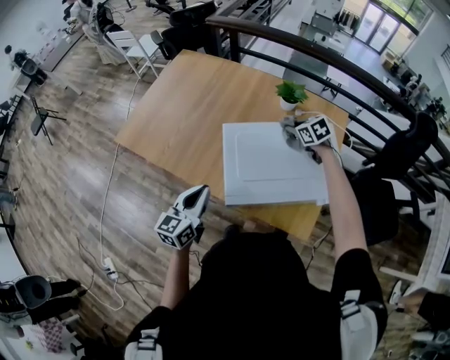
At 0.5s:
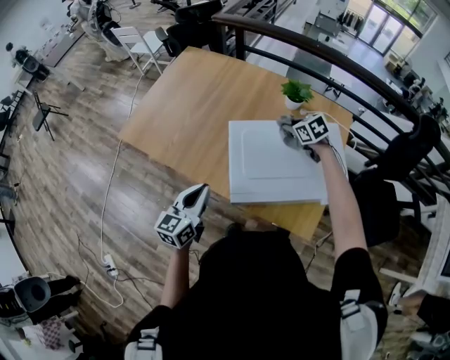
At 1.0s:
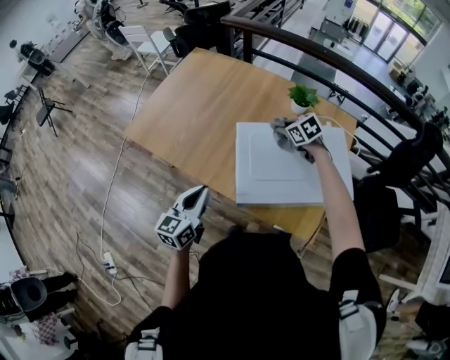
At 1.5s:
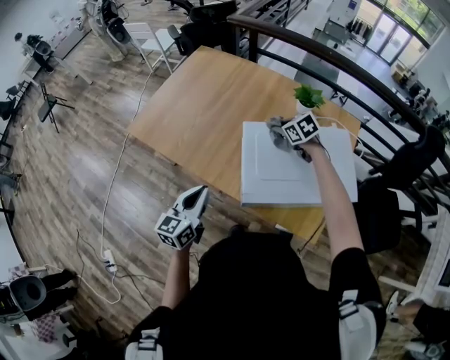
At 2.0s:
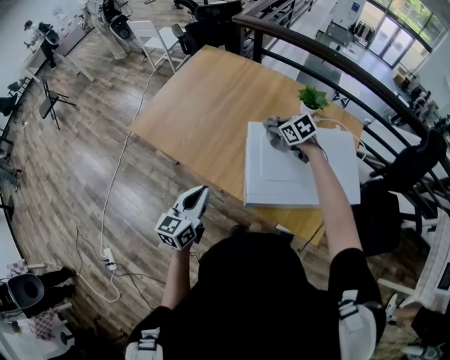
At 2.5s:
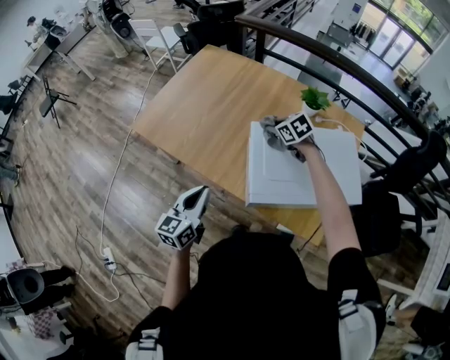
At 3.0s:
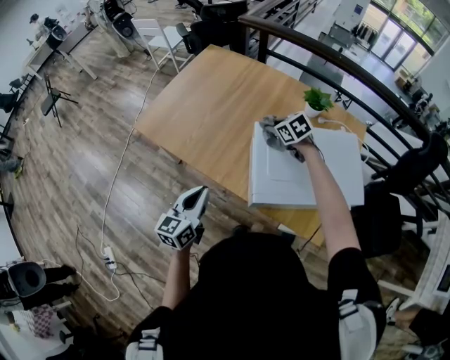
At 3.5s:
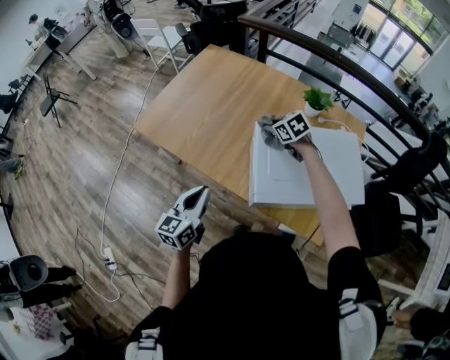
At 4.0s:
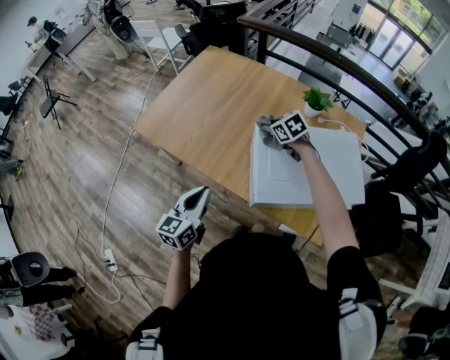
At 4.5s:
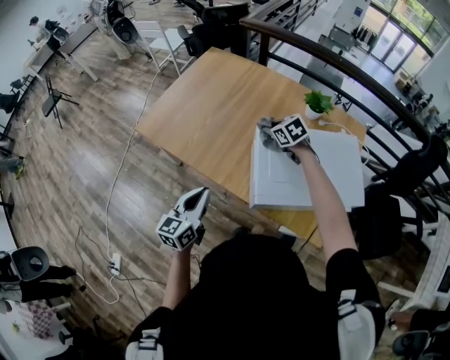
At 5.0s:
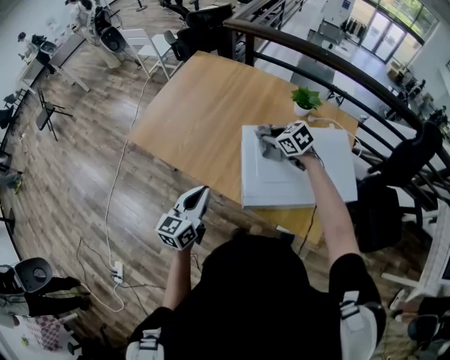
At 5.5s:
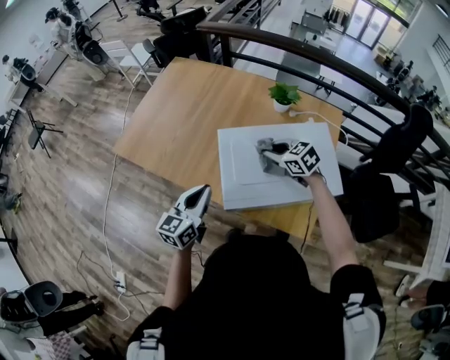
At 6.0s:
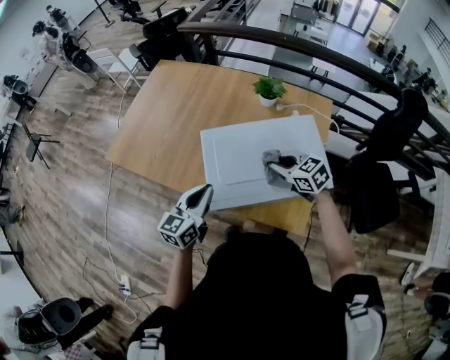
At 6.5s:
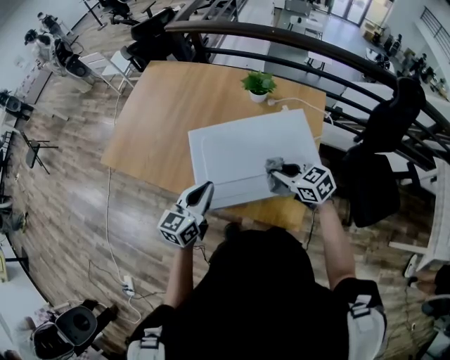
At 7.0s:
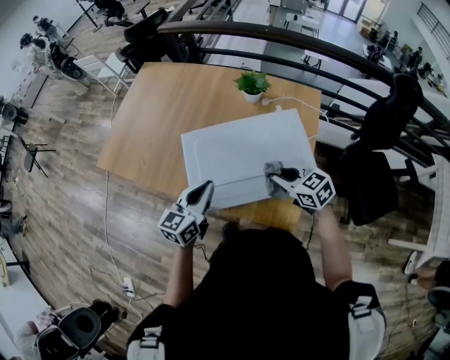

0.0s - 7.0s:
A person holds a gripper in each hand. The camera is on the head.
0.0s - 2.0s: The right gripper travels to the left by roughly 15 cm. The left gripper heads to the left, covering roughly 10 cm.
2.0s - 3.5s: The grippers make only small movements.
3.5s - 5.0s: The right gripper ends up about 5 cm from where it was.
5.0s - 7.0s: The right gripper travels to the right and backward by about 30 cm. The left gripper travels to the right by approximately 20 cm.

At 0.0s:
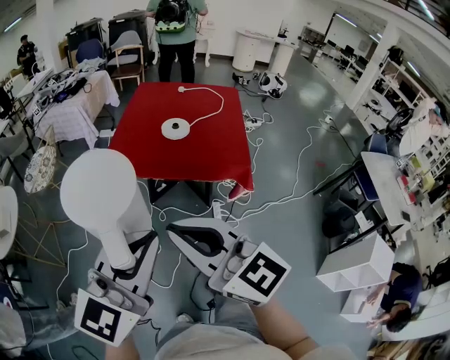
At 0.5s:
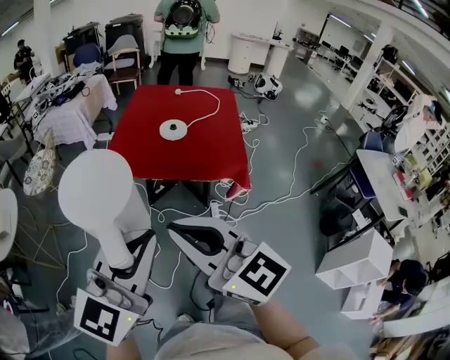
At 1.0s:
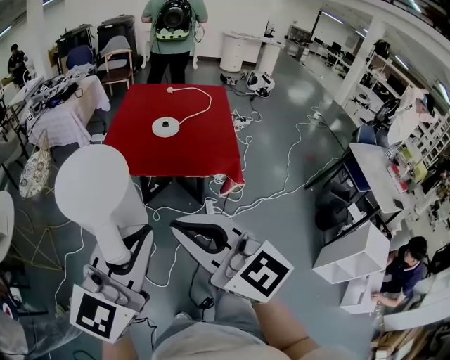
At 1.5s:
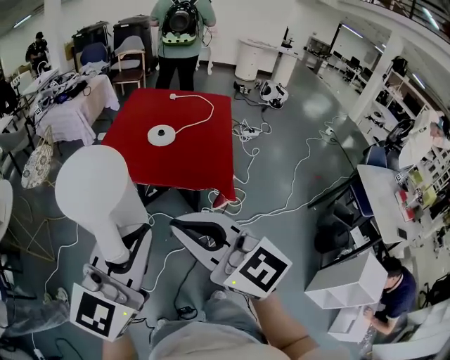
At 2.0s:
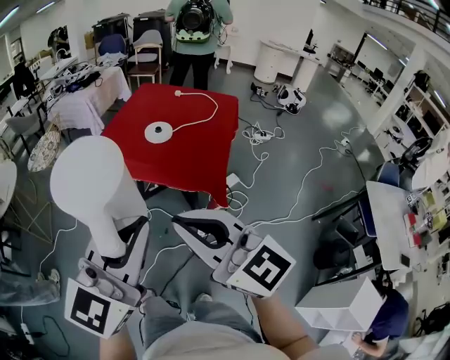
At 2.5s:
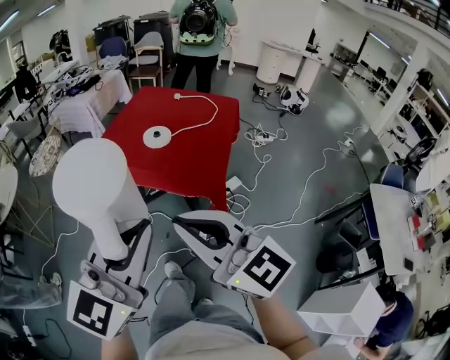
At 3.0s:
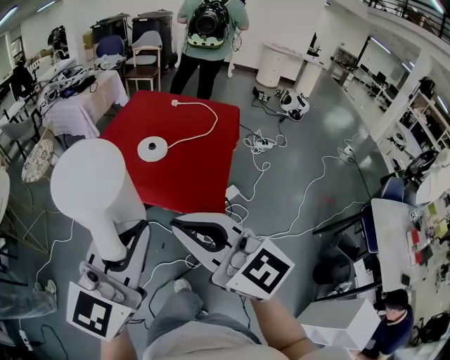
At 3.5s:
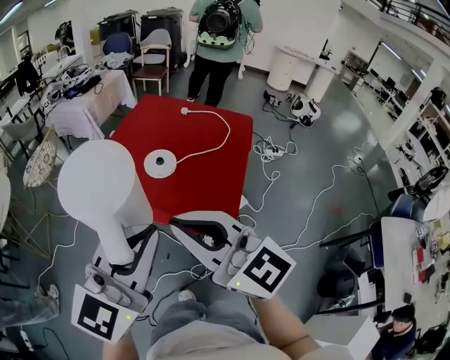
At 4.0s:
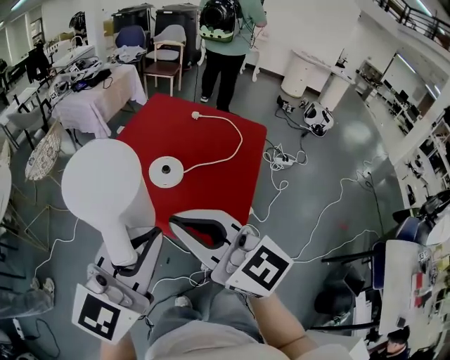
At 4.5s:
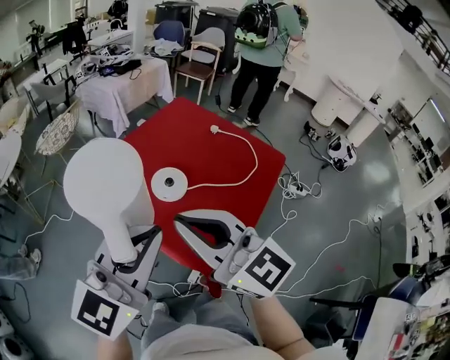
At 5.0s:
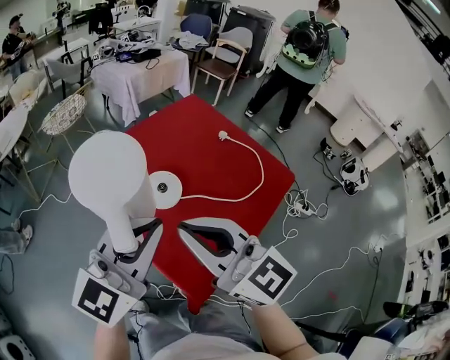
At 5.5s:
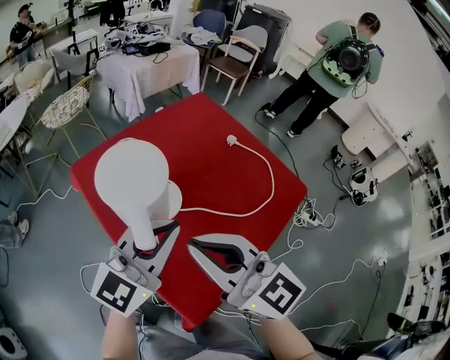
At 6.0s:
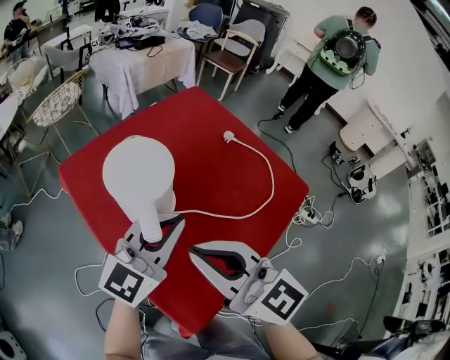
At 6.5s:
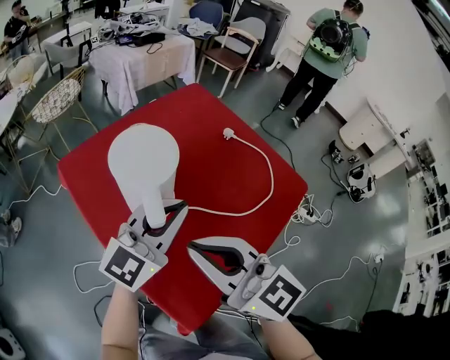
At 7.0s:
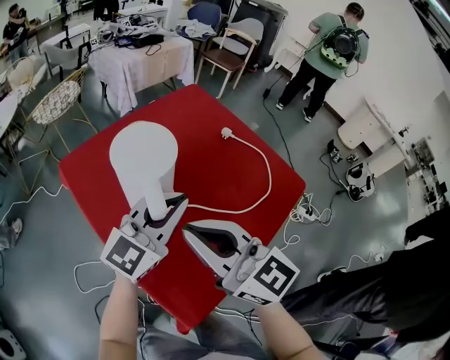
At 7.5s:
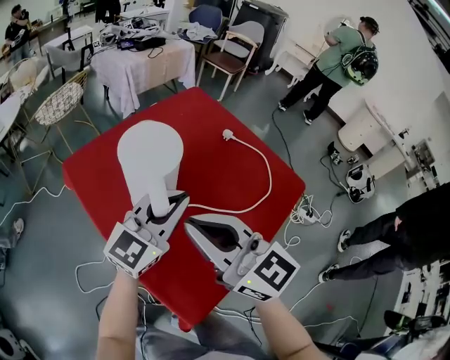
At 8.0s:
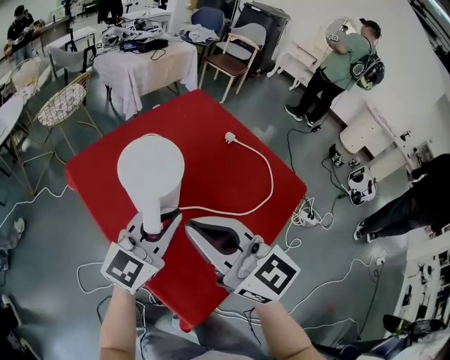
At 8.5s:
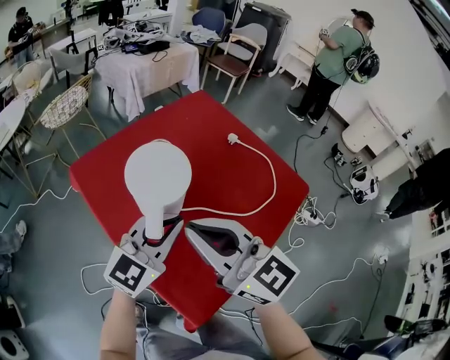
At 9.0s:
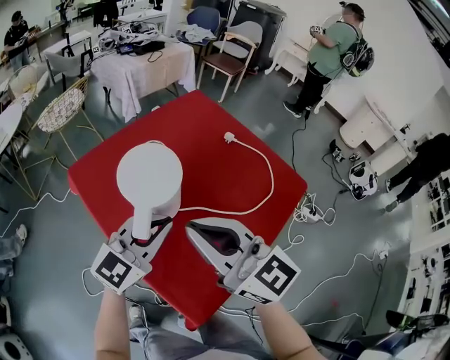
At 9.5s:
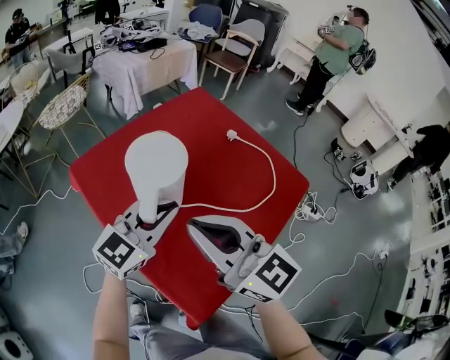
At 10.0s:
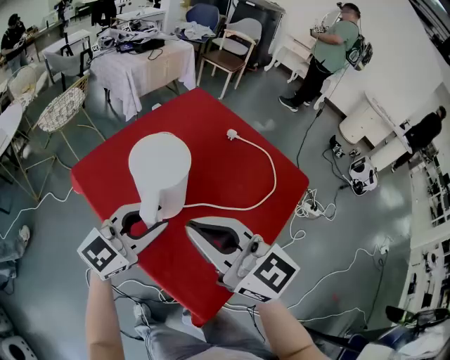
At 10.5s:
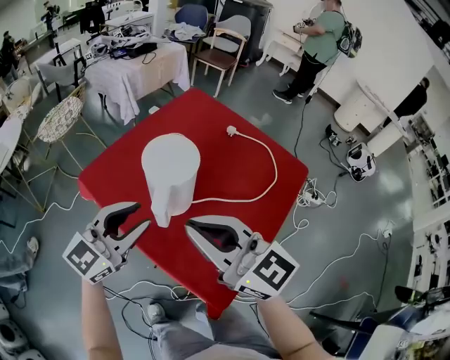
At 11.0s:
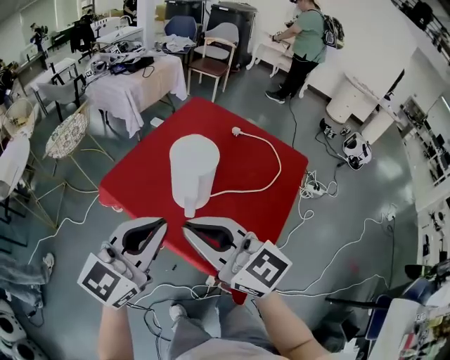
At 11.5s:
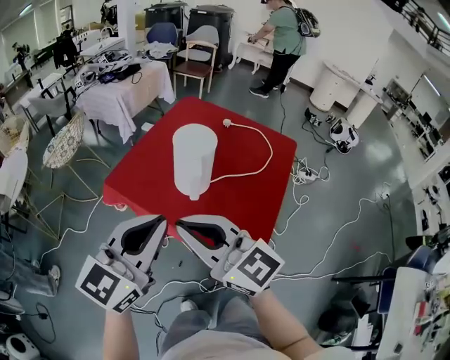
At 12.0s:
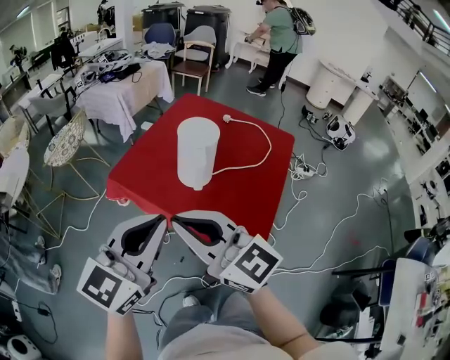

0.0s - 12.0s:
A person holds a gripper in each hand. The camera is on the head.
0.0s - 2.0s: The grippers both shift to the right by approximately 20 cm.
2.0s - 4.0s: Both grippers move forward, some 25 cm.
4.0s - 6.0s: The left gripper heads forward, to the right and downward, covering approximately 35 cm. Meanwhile the right gripper is displaced to the right, forward and downward by approximately 25 cm, and rotates roughly 20 degrees.
6.0s - 8.0s: There are only small adjustments of the grippers.
8.0s - 10.0s: The left gripper opens.
10.0s - 12.0s: The right gripper shifts some 25 cm to the left and backward, while the left gripper shifts some 30 cm backward, to the left and upward, and closes up.

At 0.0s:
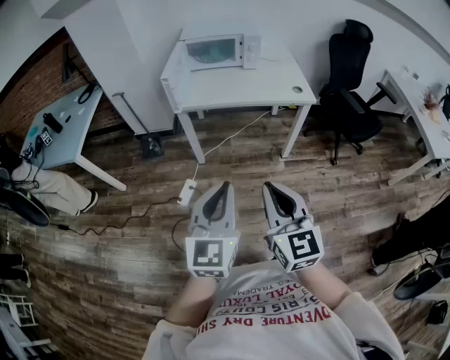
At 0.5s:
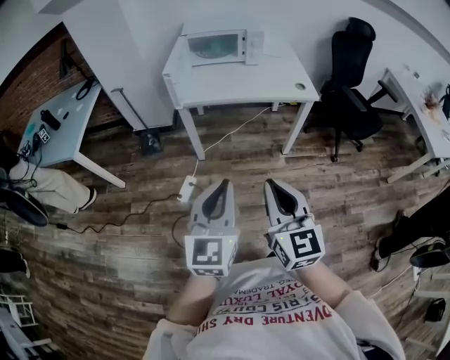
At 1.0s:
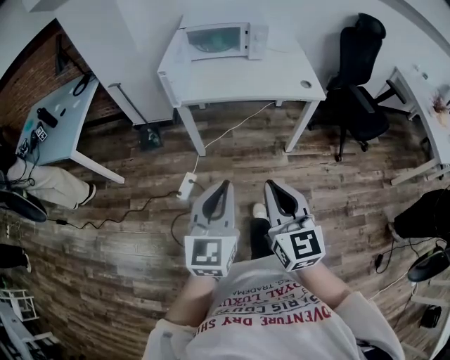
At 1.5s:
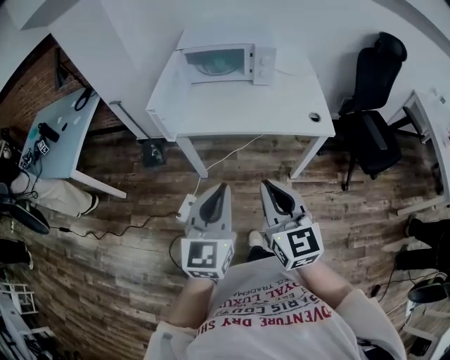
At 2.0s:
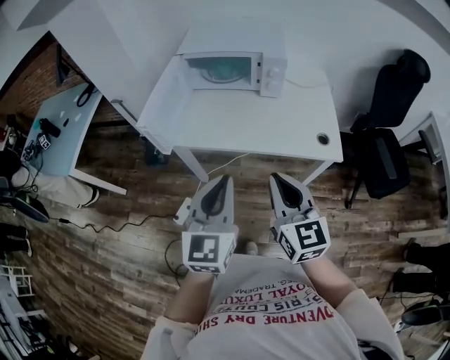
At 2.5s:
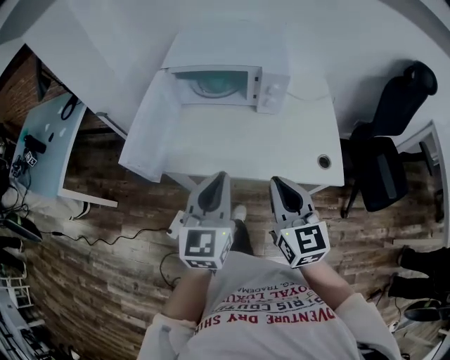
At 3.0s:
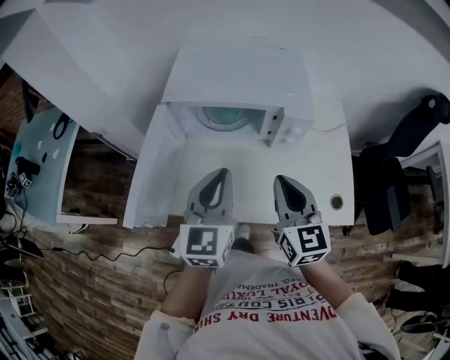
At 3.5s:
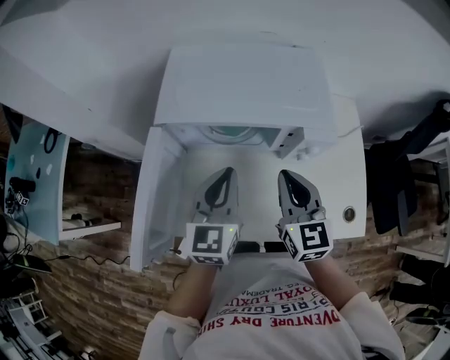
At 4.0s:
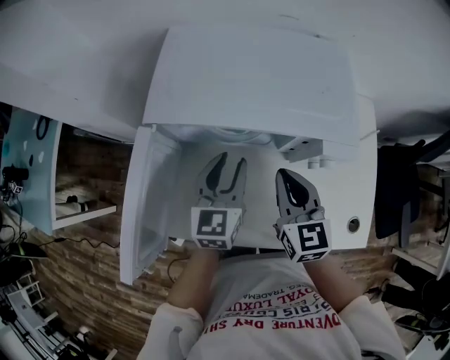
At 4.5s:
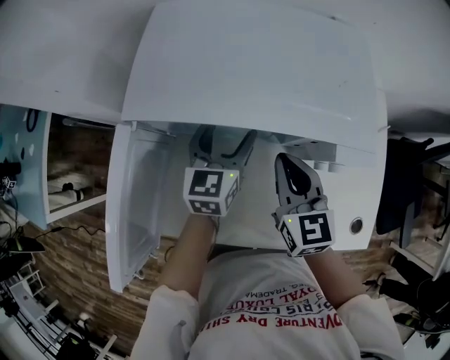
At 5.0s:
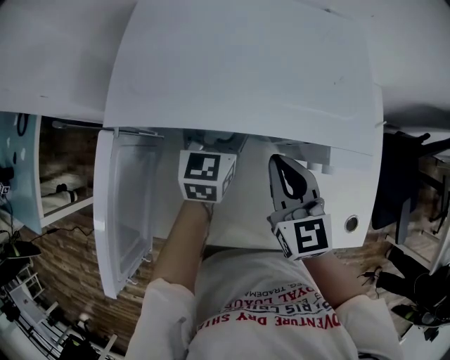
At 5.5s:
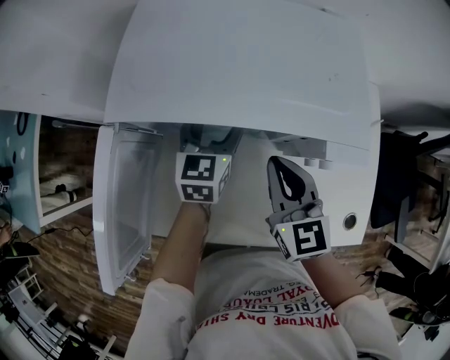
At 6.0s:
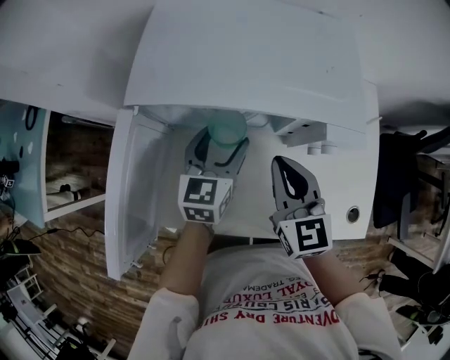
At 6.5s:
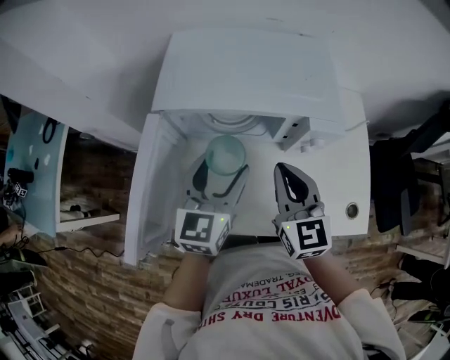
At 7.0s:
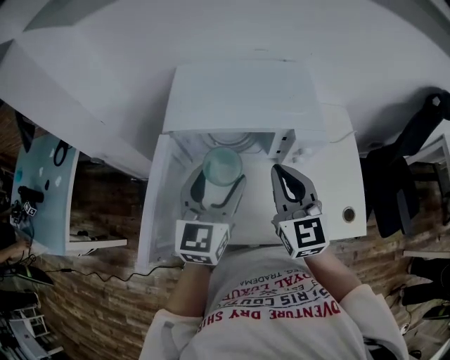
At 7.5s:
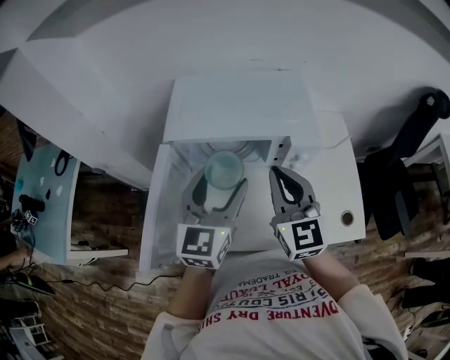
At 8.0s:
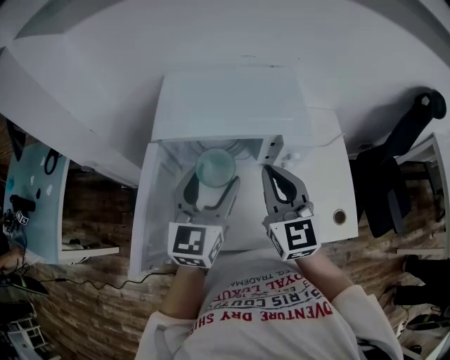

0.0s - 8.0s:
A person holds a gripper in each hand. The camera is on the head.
0.0s - 2.0s: Both grippers move forward, approximately 35 cm.
2.0s - 4.0s: The two grippers travel together, forward, approximately 50 cm.
4.0s - 6.0s: The left gripper moves about 10 cm forward and comes back, and opens up.
6.0s - 8.0s: The right gripper moves upward, roughly 15 cm, while the left gripper heads upward and backward, covering approximately 20 cm.
